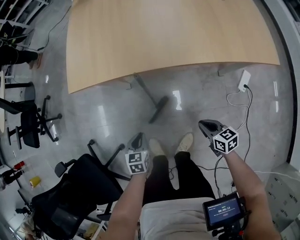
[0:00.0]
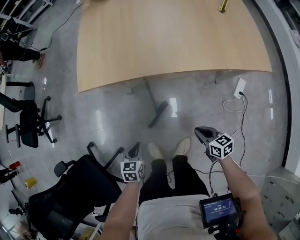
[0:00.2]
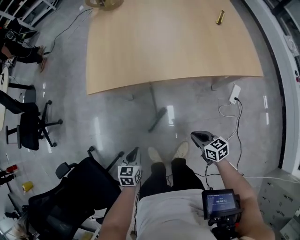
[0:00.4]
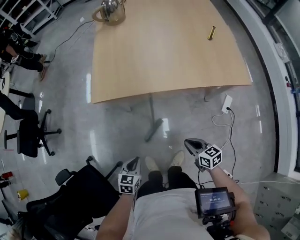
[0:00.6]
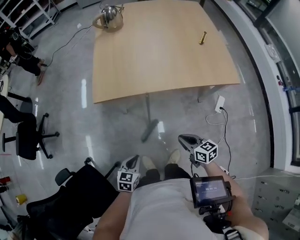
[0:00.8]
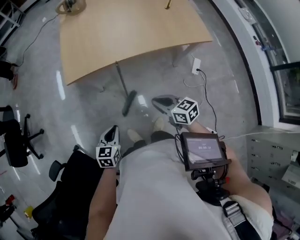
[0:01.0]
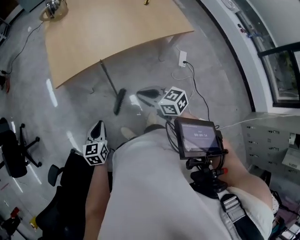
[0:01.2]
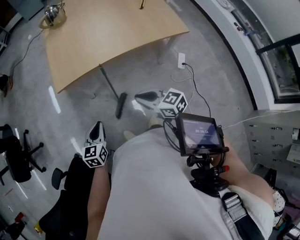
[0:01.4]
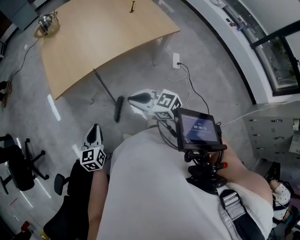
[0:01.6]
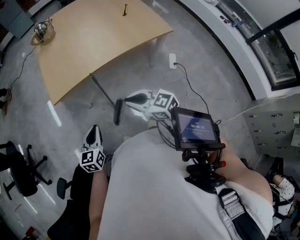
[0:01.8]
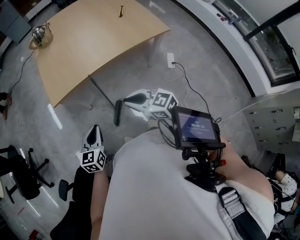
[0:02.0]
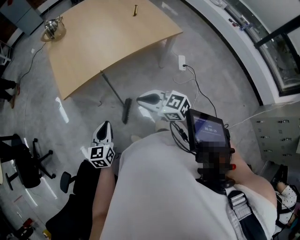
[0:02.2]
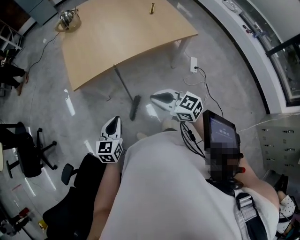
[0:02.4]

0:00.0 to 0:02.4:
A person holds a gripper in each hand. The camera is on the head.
0:00.0 to 0:01.2: The right gripper moves upward and to the left, about 30 cm. Meanwhile the left gripper moves upward, approximately 20 cm, and swivels some 30 degrees.
0:01.2 to 0:02.4: Both grippers travel together upward, approximately 5 cm.

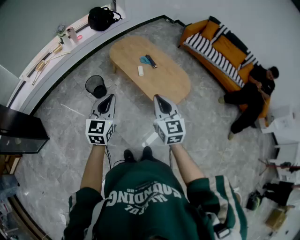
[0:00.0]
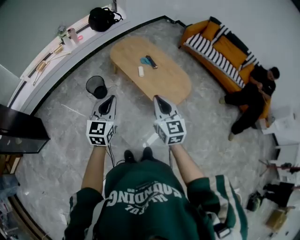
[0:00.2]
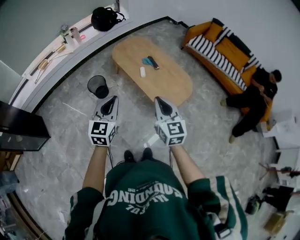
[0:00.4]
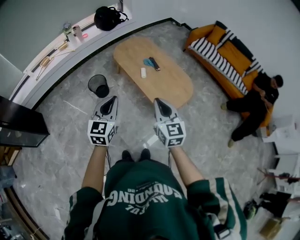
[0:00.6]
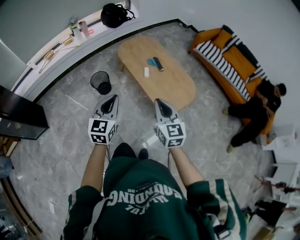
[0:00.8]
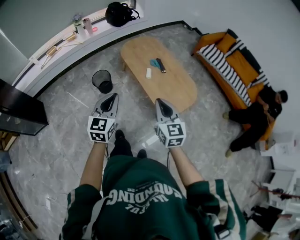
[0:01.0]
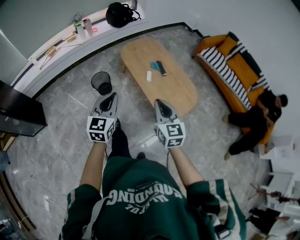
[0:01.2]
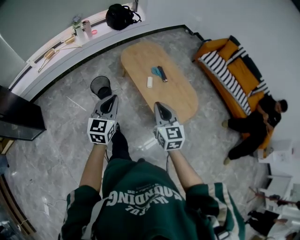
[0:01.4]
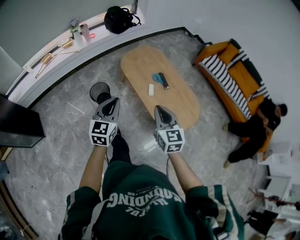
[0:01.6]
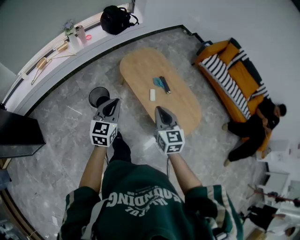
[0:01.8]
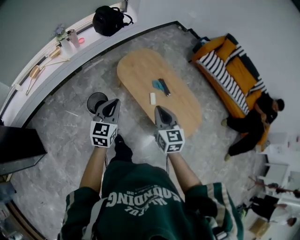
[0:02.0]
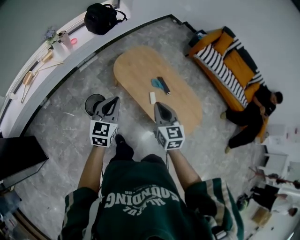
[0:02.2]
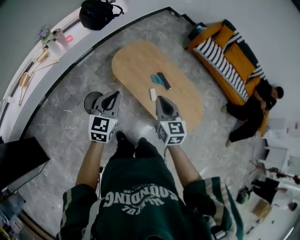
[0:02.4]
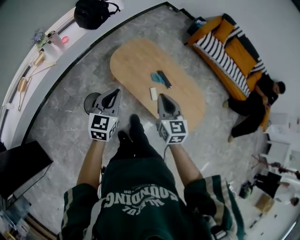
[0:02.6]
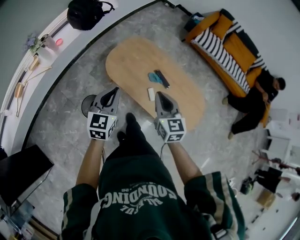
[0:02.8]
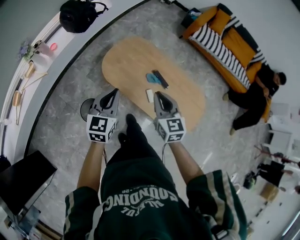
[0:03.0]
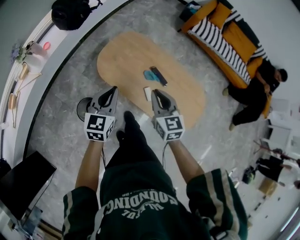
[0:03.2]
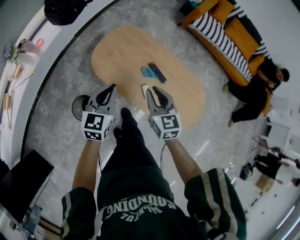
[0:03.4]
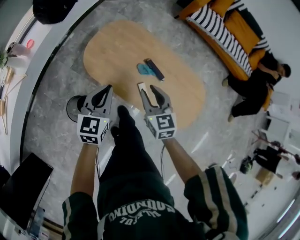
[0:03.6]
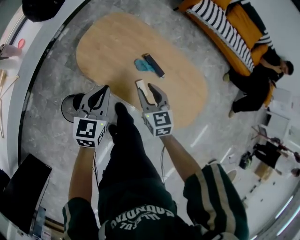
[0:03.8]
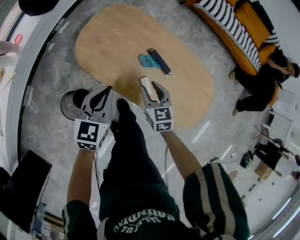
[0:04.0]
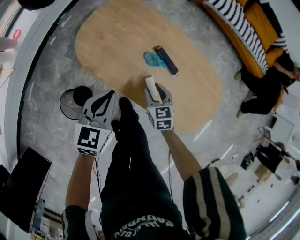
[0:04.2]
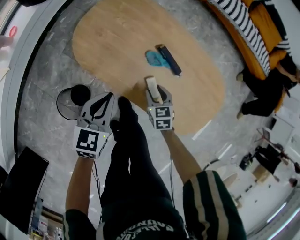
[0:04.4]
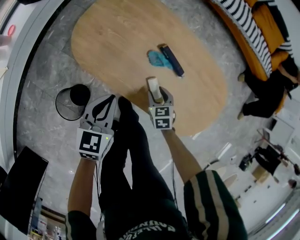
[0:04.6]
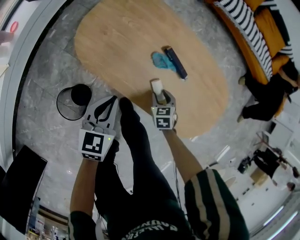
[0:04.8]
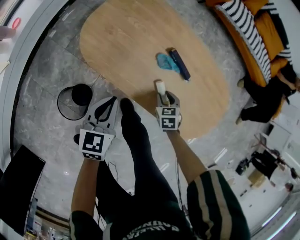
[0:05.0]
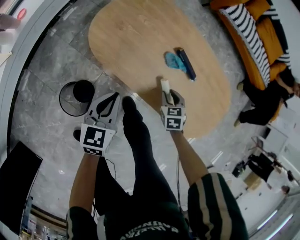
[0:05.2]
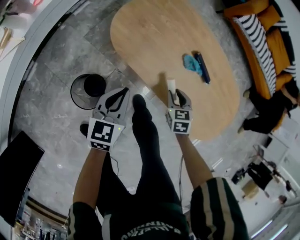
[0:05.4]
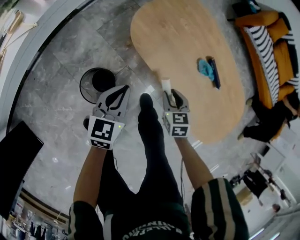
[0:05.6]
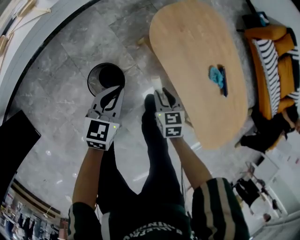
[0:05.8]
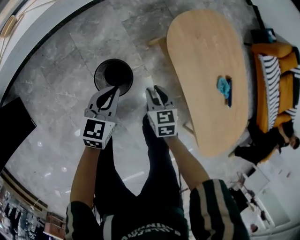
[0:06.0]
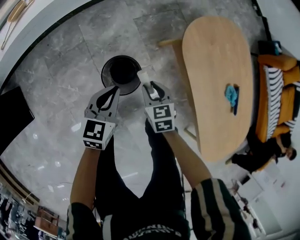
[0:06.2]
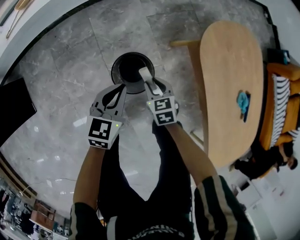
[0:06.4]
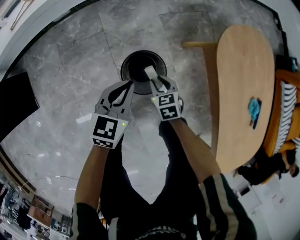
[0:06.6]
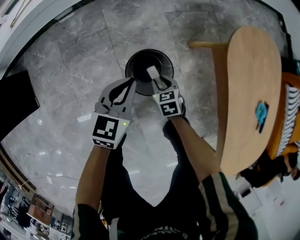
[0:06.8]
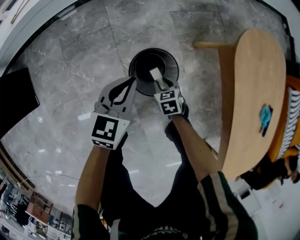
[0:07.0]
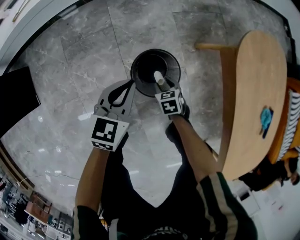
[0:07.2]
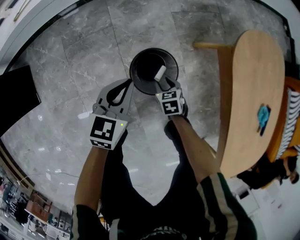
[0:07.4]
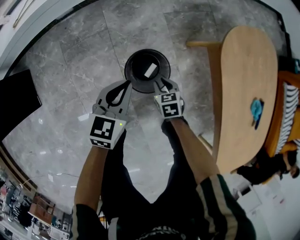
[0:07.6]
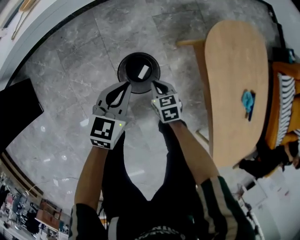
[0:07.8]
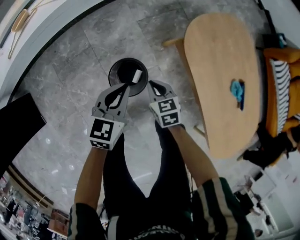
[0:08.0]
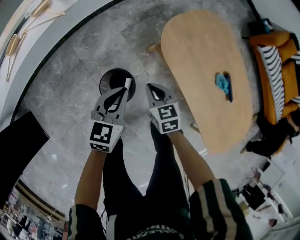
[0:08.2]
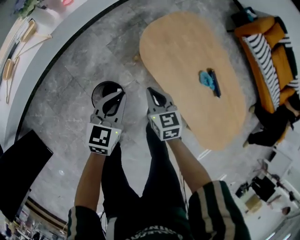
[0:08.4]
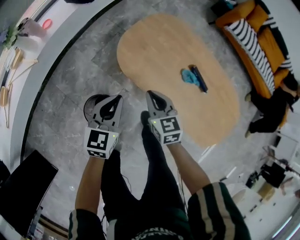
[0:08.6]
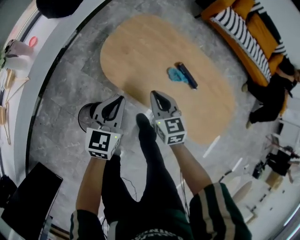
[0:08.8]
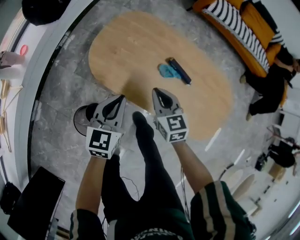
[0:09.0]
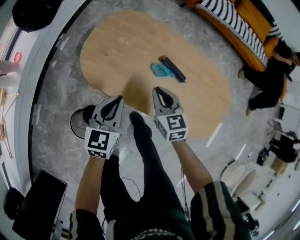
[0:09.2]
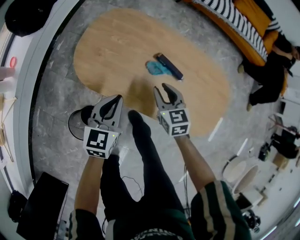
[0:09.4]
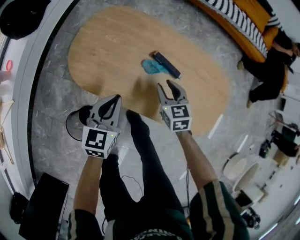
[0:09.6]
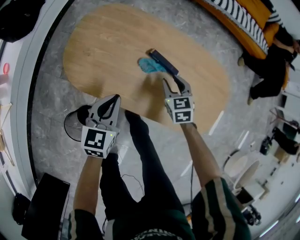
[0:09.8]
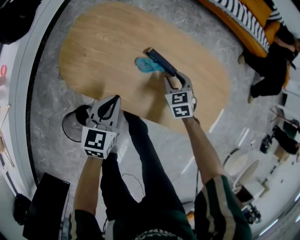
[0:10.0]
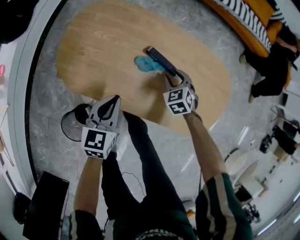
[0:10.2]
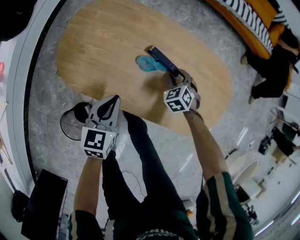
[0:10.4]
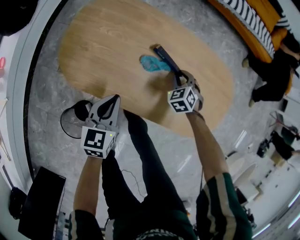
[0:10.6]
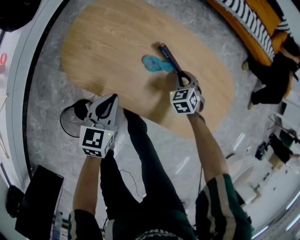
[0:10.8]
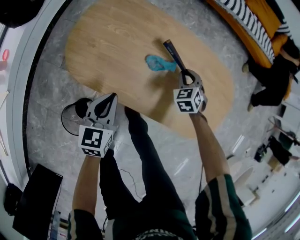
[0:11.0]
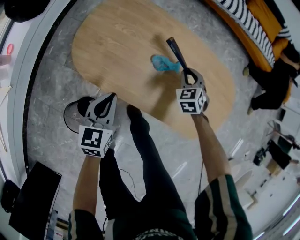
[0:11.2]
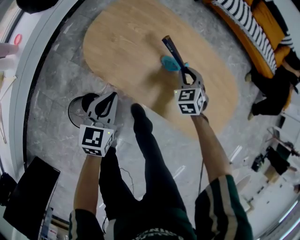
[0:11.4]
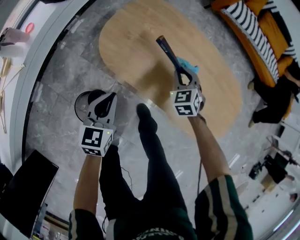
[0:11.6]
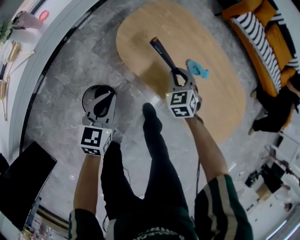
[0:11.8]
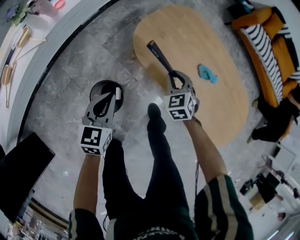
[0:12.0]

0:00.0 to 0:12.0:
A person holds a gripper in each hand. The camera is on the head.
0:00.0 to 0:01.6: Both grippers move forward, some 15 cm.
0:01.6 to 0:03.0: Both grippers travel together forward, approximately 30 cm. The left gripper rotates about 20 degrees.
0:03.0 to 0:04.4: The left gripper travels downward by approximately 25 cm; the right gripper moves downward, about 40 cm, points its fingers about 30 degrees further downward, and opens up.
0:04.4 to 0:06.0: The left gripper moves approximately 35 cm, and rotates about 30 degrees; the right gripper shifts by about 35 cm, and turns by about 30 degrees.
0:06.0 to 0:07.6: The right gripper heads downward and to the left, covering some 20 cm; the left gripper is displaced to the left and downward by approximately 15 cm.
0:07.6 to 0:09.0: The right gripper shifts by about 50 cm, changes its angle by some 50 degrees, and closes its fingers. Meanwhile the left gripper changes place by roughly 40 cm, and rotates approximately 40 degrees.
0:09.0 to 0:10.4: The right gripper heads to the right, downward and forward, covering roughly 30 cm, changes its angle by about 40 degrees, and opens its fingers. Meanwhile the left gripper moves downward and to the right, some 15 cm.
0:10.4 to 0:12.0: The left gripper changes place by about 30 cm, and rotates approximately 30 degrees. Meanwhile the right gripper ends up some 35 cm from where it was, and changes its angle by roughly 30 degrees.

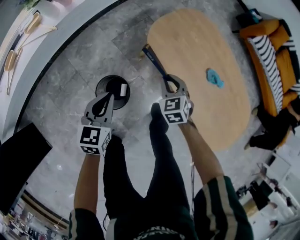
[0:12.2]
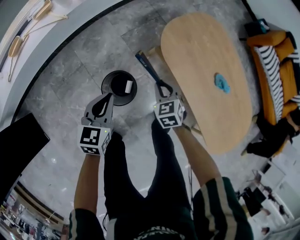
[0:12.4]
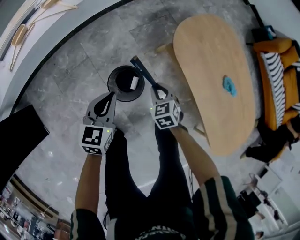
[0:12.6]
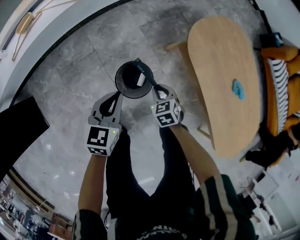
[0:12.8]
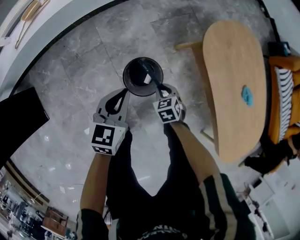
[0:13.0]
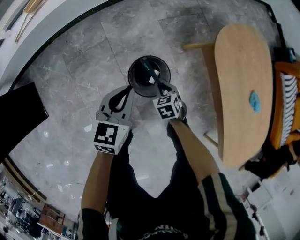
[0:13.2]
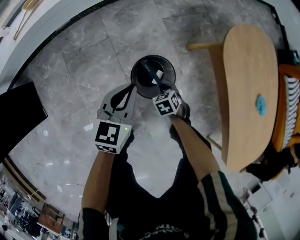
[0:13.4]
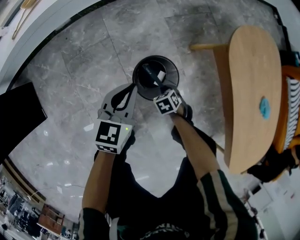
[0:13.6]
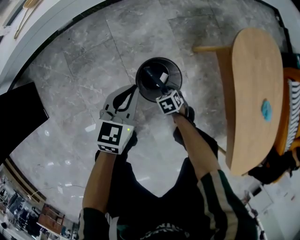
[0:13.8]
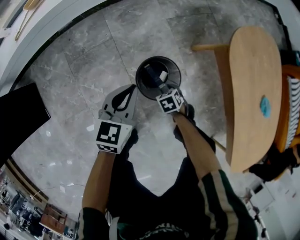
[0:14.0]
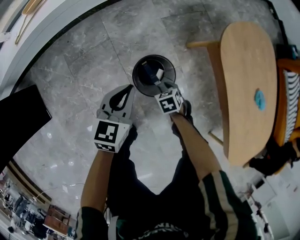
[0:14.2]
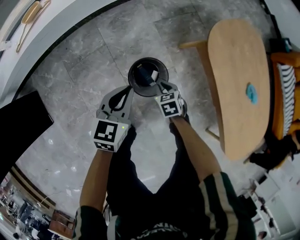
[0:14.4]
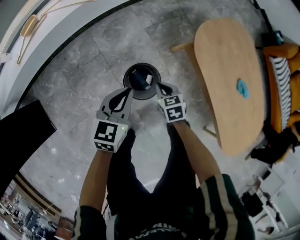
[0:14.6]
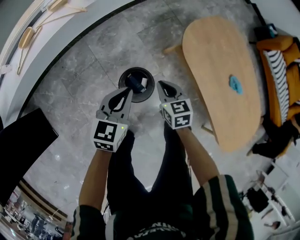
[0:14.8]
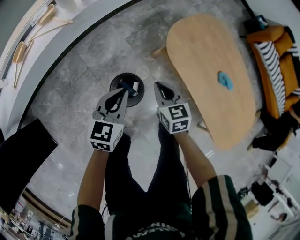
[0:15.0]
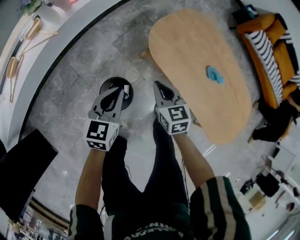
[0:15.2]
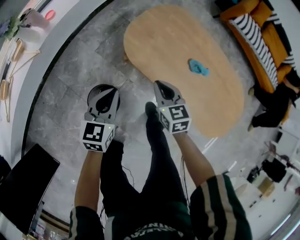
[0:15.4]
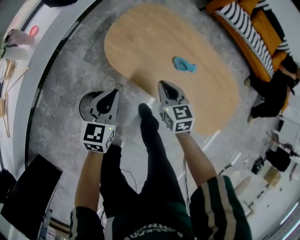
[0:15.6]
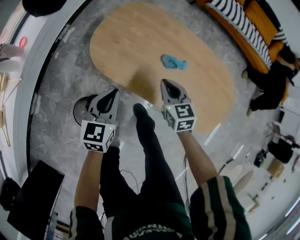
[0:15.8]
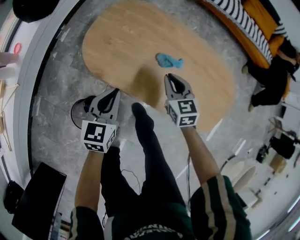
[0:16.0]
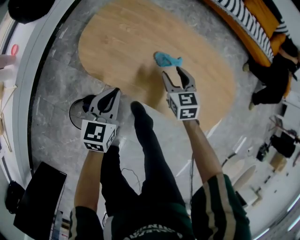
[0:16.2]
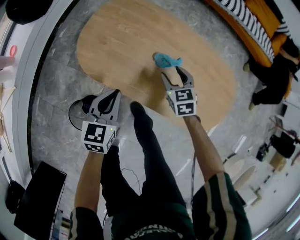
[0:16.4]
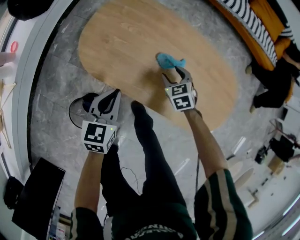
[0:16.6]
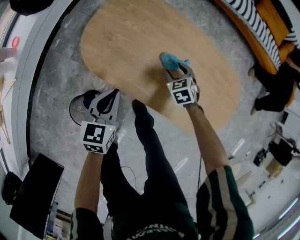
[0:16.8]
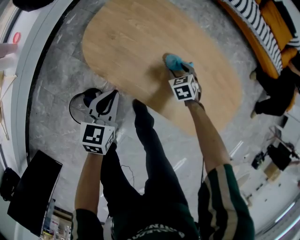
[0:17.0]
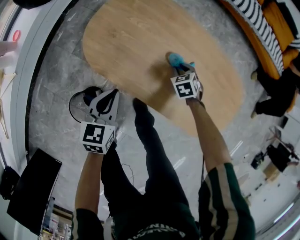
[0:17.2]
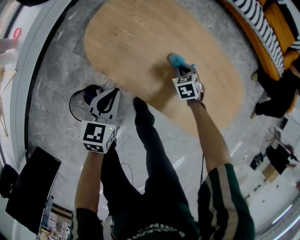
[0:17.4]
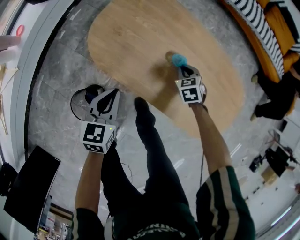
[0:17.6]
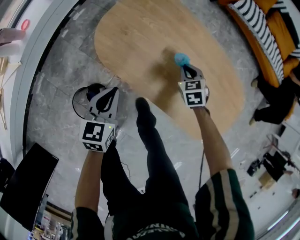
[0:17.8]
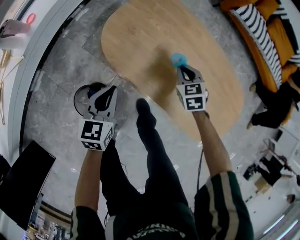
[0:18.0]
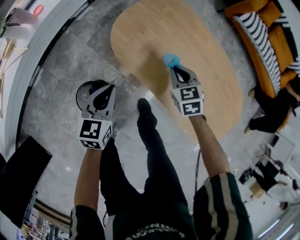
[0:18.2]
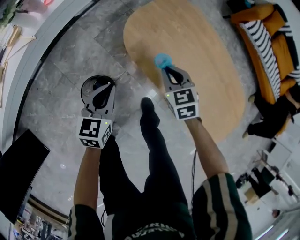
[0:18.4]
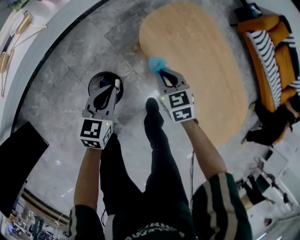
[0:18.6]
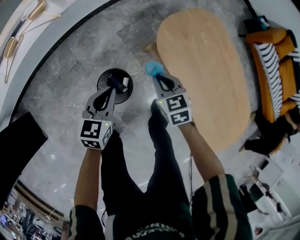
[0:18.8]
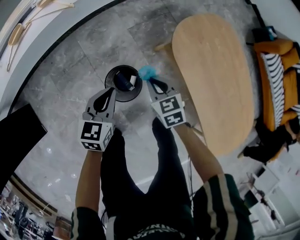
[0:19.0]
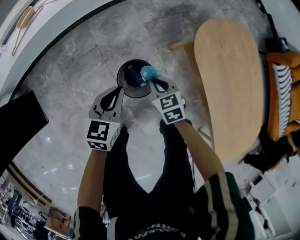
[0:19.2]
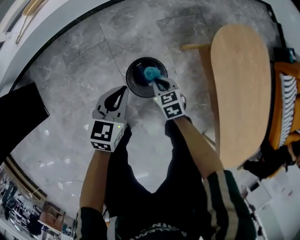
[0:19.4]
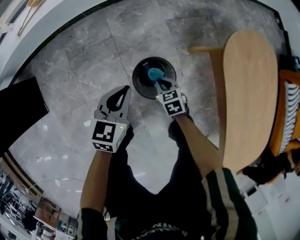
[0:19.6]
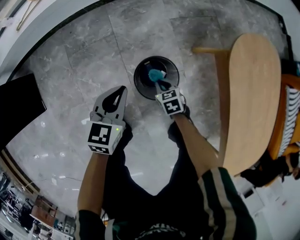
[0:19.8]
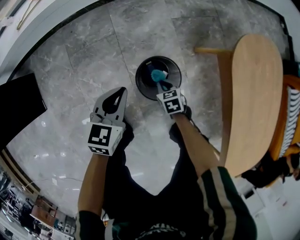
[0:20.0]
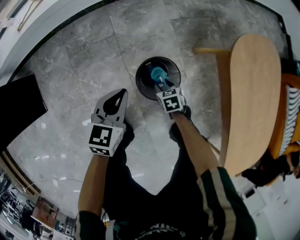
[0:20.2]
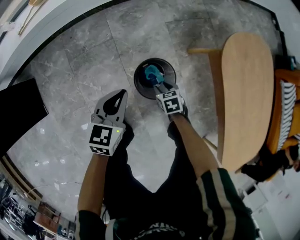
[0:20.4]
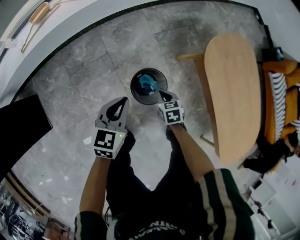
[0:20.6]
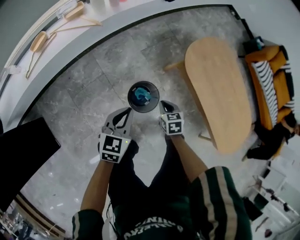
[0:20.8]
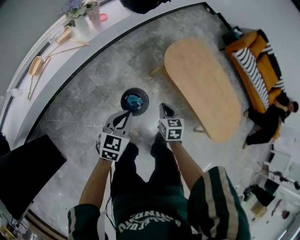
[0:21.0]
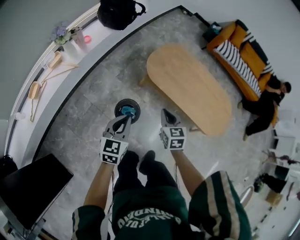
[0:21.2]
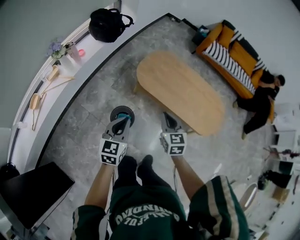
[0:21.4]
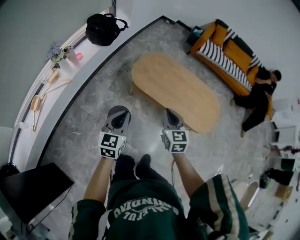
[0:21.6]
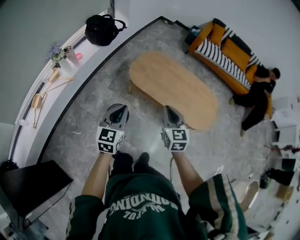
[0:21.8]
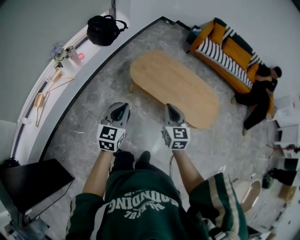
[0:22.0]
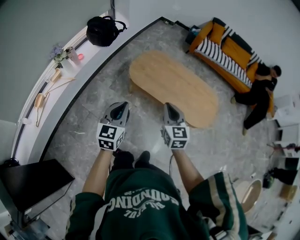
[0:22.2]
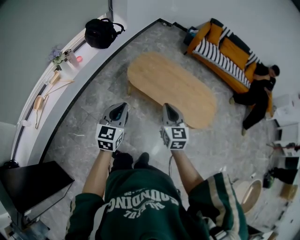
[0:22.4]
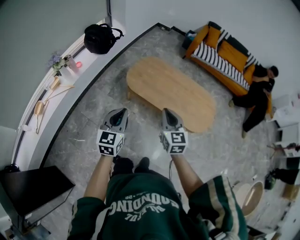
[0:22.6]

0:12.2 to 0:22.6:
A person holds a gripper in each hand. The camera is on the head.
0:12.2 to 0:13.6: The left gripper ends up roughly 20 cm from where it was. The right gripper travels downward by some 35 cm, and tilts its fingers about 30 degrees downward.
0:13.6 to 0:15.2: The right gripper heads upward, covering about 40 cm, and tilts its fingers about 40 degrees upward; the left gripper moves upward, some 15 cm.
0:15.2 to 0:16.6: The right gripper ends up roughly 40 cm from where it was, rotates about 30 degrees, and opens. Meanwhile the left gripper shifts by about 30 cm.
0:16.6 to 0:18.2: The left gripper shifts about 15 cm to the left and backward, while the right gripper is displaced to the left and upward by approximately 15 cm, and closes.
0:18.2 to 0:19.6: The right gripper moves roughly 50 cm, and rotates some 40 degrees; the left gripper ends up some 35 cm from where it was, and rotates some 20 degrees.
0:19.6 to 0:21.2: The two grippers go roughly 40 cm upward. The right gripper rotates roughly 60 degrees, and opens, then closes again. The left gripper turns by approximately 30 degrees.
0:21.2 to 0:22.6: The right gripper travels upward and to the right by approximately 25 cm, and changes its angle by roughly 20 degrees. The left gripper heads to the right and upward, covering approximately 20 cm.
